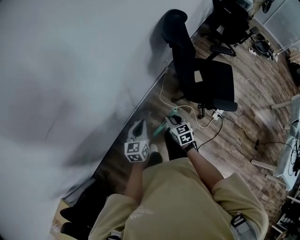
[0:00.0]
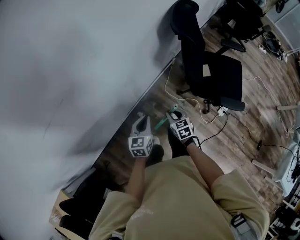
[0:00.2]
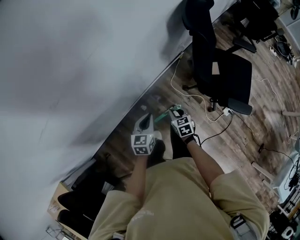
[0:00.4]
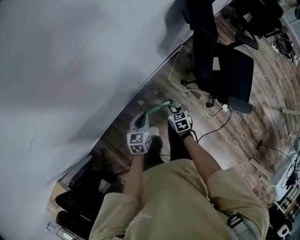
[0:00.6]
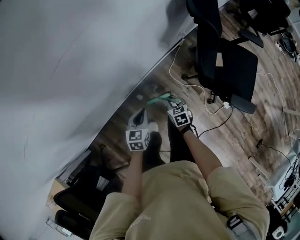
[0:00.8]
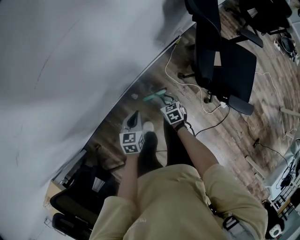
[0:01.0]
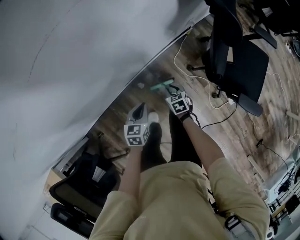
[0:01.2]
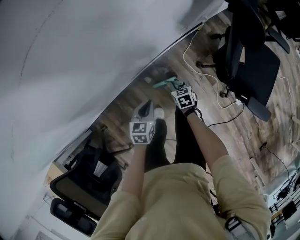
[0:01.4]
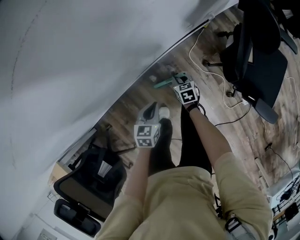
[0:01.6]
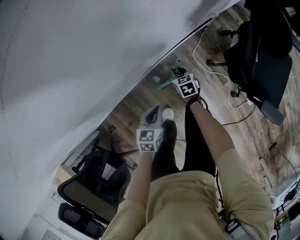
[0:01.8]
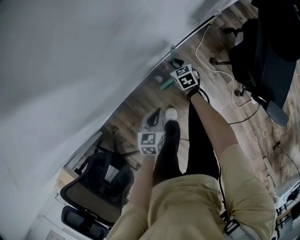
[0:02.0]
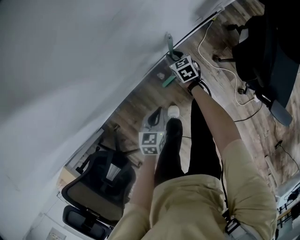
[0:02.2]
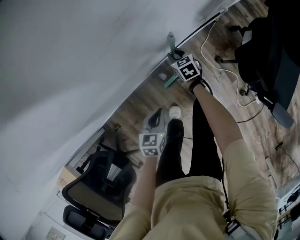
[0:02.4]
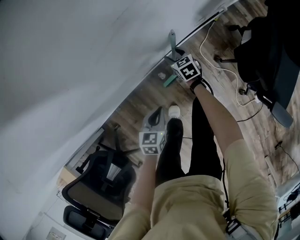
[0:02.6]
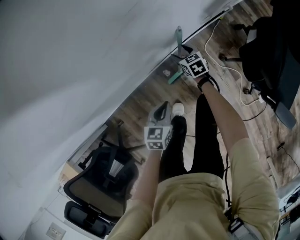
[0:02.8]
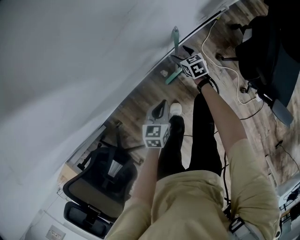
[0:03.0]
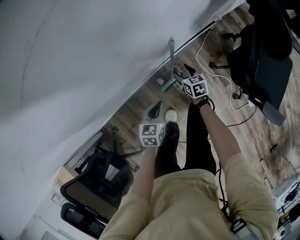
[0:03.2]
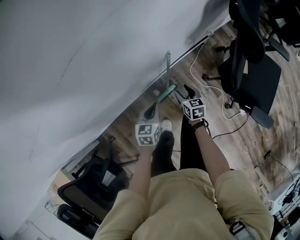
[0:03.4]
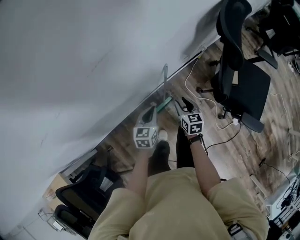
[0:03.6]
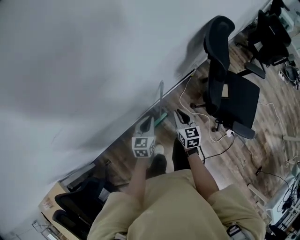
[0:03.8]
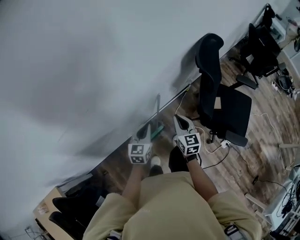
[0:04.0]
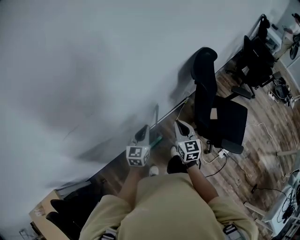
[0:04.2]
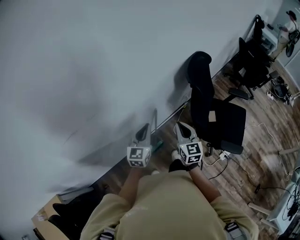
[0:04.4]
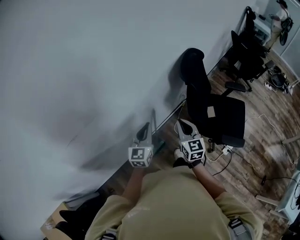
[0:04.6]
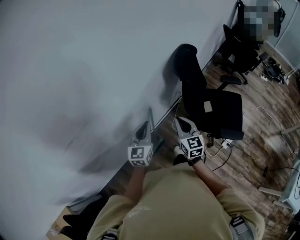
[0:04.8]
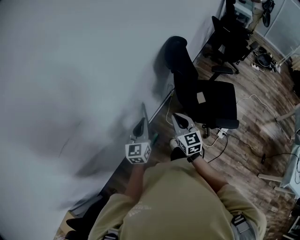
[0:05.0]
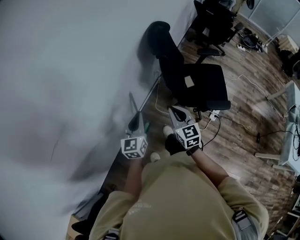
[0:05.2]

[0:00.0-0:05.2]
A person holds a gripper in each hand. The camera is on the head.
0:00.0 to 0:01.8: The right gripper goes about 40 cm downward and forward. The left gripper is displaced downward by roughly 25 cm, and changes its angle by roughly 30 degrees.
0:01.8 to 0:03.4: The left gripper is displaced forward and upward by about 10 cm, while the right gripper shifts roughly 10 cm upward, and opens.
0:03.4 to 0:05.2: Both grippers travel together upward, about 35 cm. The right gripper turns by roughly 40 degrees, and closes. The left gripper angles its fingers upward, by roughly 30 degrees.

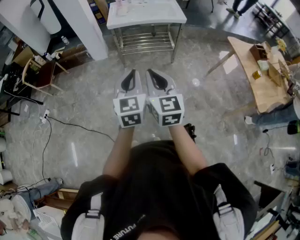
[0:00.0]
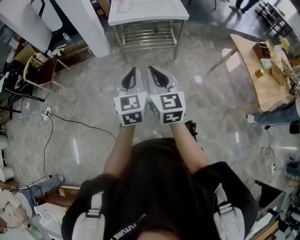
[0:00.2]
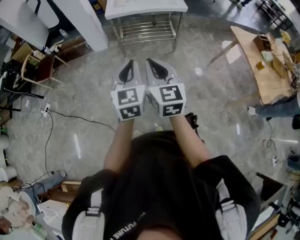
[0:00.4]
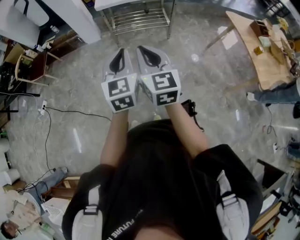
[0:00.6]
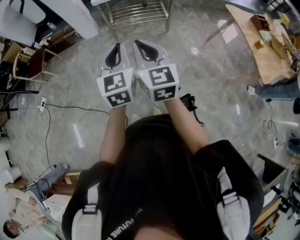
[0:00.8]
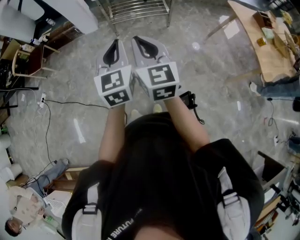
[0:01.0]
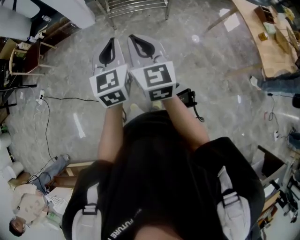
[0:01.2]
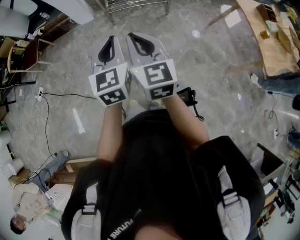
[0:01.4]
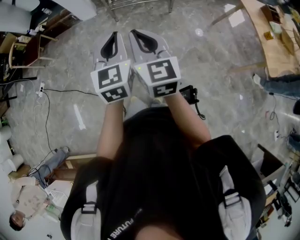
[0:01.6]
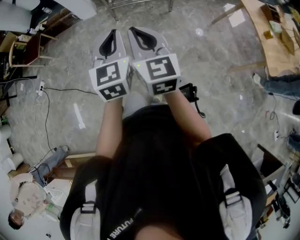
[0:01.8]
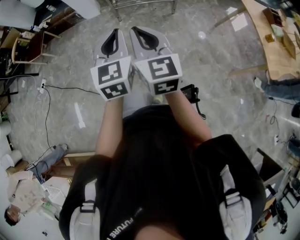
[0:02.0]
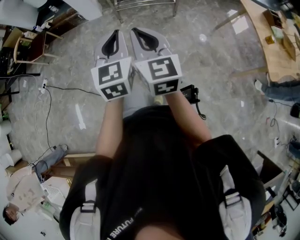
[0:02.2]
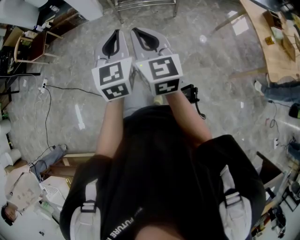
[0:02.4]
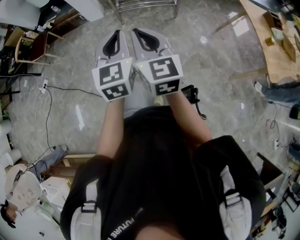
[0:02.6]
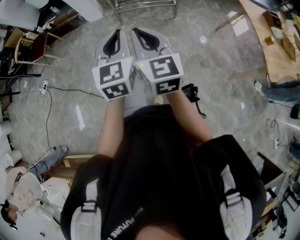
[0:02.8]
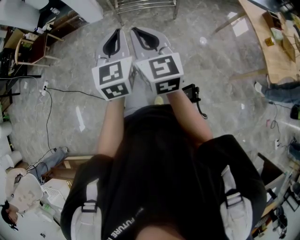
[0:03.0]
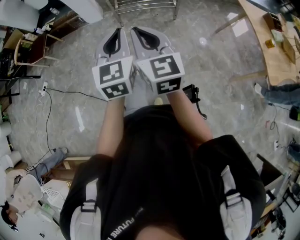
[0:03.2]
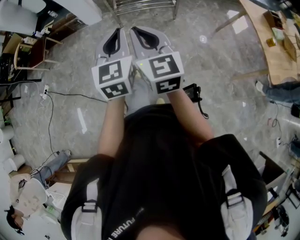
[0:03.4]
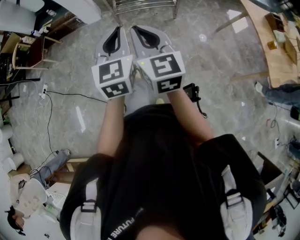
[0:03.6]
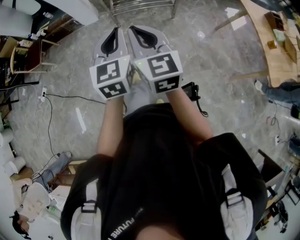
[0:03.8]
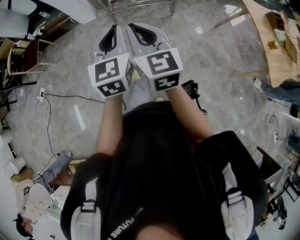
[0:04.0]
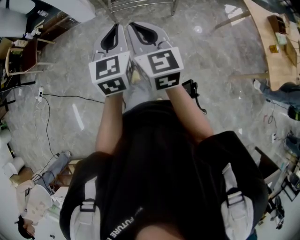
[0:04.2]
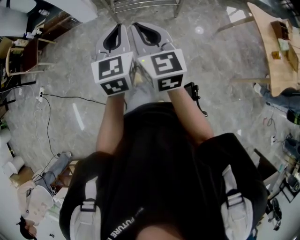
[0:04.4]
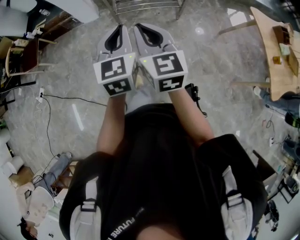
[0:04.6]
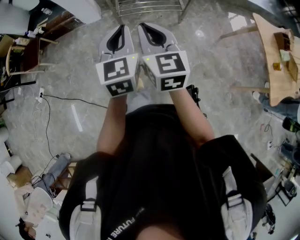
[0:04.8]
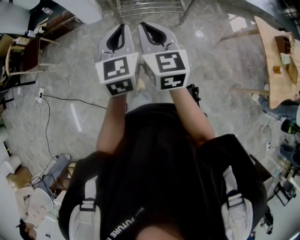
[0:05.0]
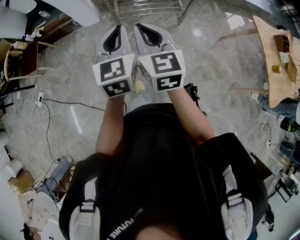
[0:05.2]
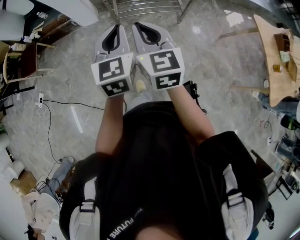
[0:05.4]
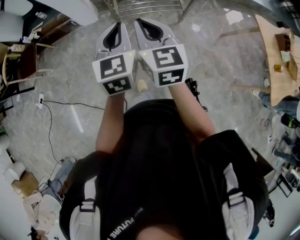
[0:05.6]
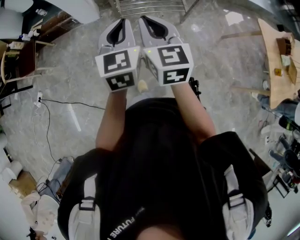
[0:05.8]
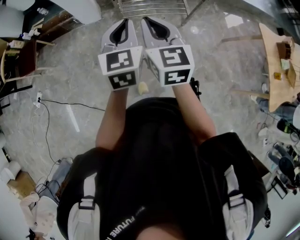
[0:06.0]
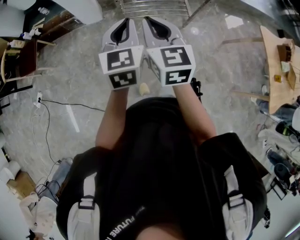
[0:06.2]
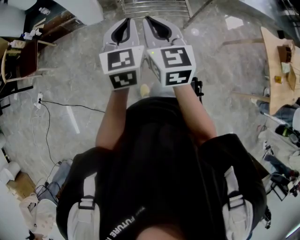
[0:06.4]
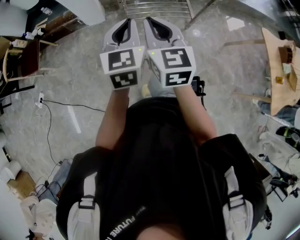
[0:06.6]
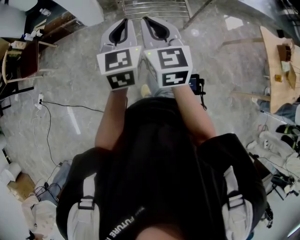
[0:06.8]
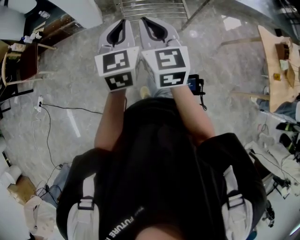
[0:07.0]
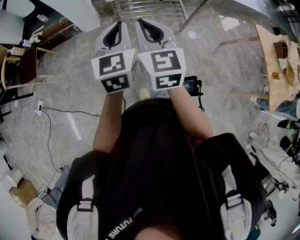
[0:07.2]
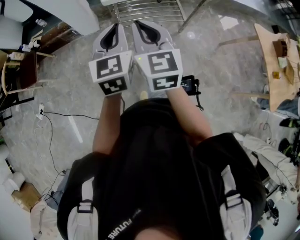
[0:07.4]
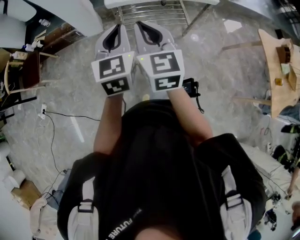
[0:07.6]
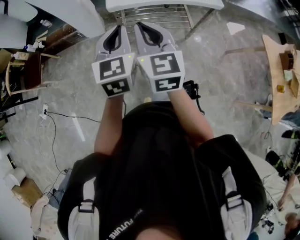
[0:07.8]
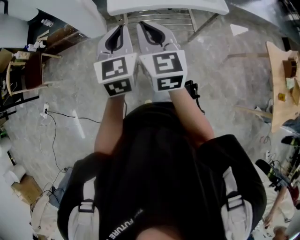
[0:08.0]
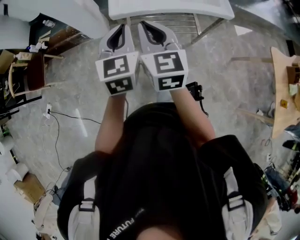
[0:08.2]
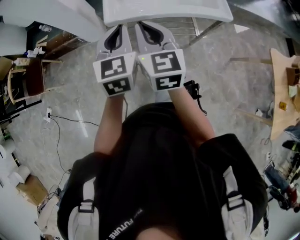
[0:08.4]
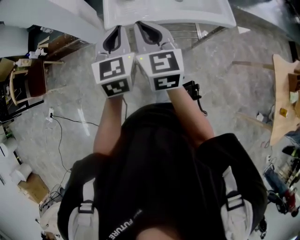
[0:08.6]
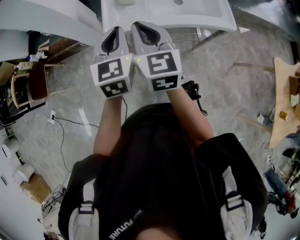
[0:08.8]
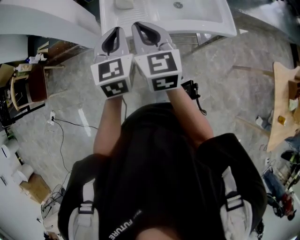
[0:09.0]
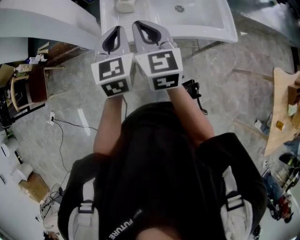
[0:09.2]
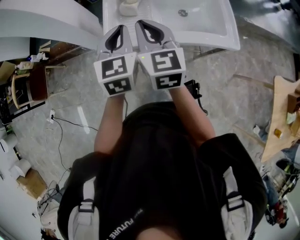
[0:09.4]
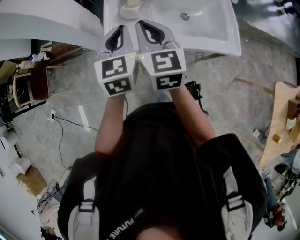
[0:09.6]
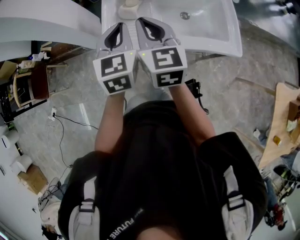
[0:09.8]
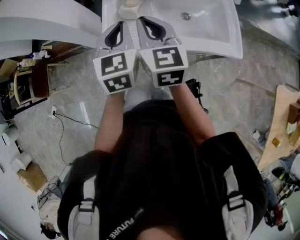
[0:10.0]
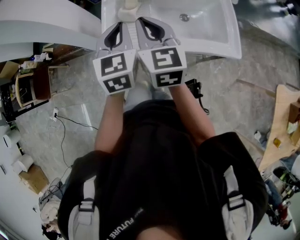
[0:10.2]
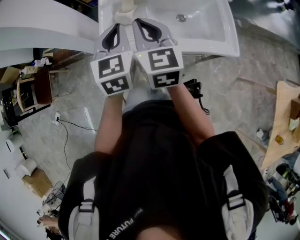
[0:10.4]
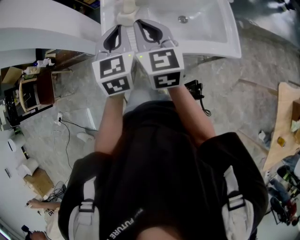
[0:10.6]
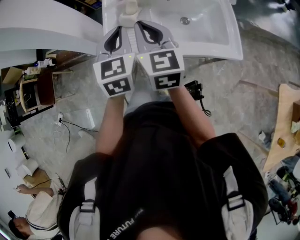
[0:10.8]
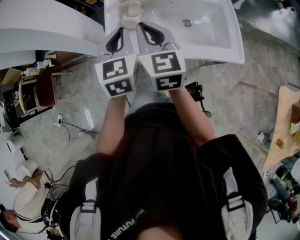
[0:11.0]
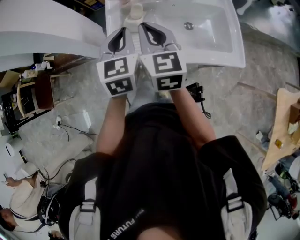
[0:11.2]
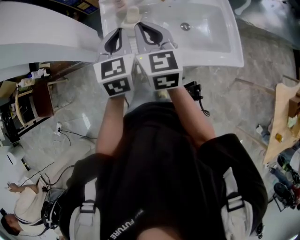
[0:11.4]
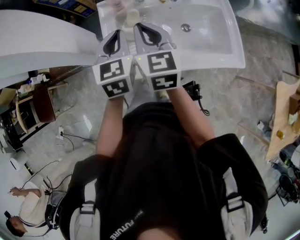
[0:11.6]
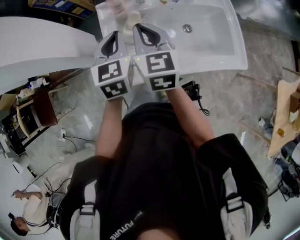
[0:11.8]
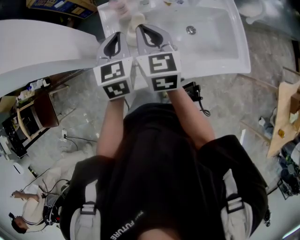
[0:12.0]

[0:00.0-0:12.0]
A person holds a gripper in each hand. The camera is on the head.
0:00.0 to 0:01.6: The left gripper ends up about 5 cm from where it was. The right gripper moves approximately 5 cm.
0:01.6 to 0:03.0: There are only small adjustments of the grippers.
0:03.0 to 0:04.4: The grippers both shift forward by about 20 cm.
0:04.4 to 0:06.0: Both grippers travel together forward and to the left, roughly 25 cm.
0:06.0 to 0:07.6: The two grippers go some 5 cm forward.
0:07.6 to 0:09.0: The grippers both shift forward by roughly 35 cm.
0:09.0 to 0:10.4: The two grippers go about 15 cm forward and to the right.
0:10.4 to 0:12.0: The two grippers go some 20 cm forward.

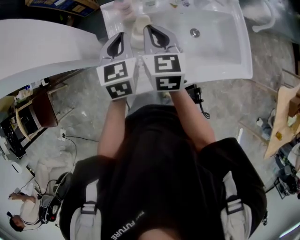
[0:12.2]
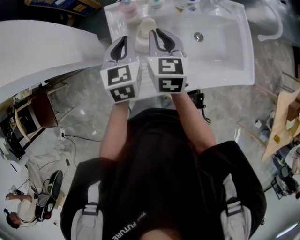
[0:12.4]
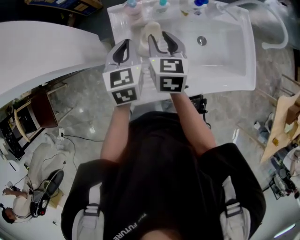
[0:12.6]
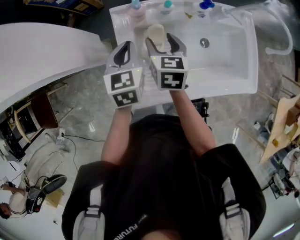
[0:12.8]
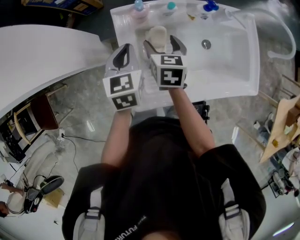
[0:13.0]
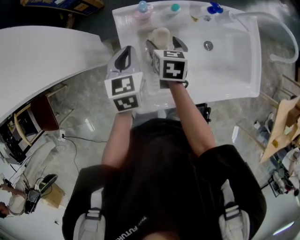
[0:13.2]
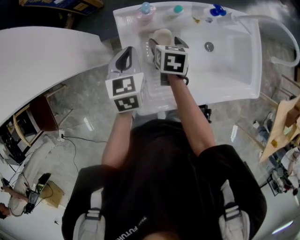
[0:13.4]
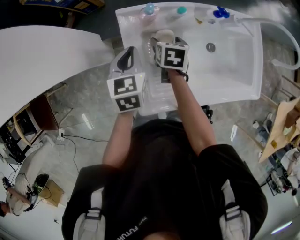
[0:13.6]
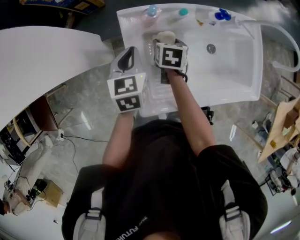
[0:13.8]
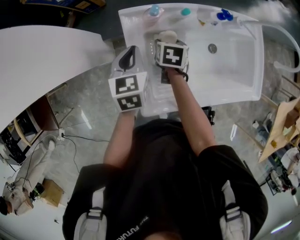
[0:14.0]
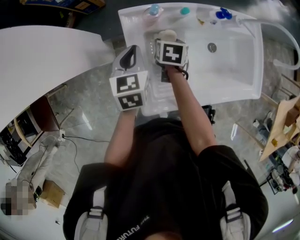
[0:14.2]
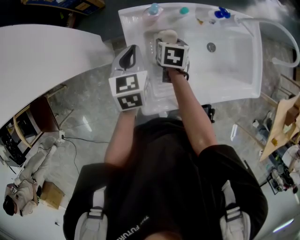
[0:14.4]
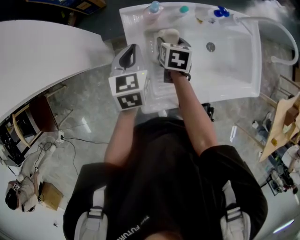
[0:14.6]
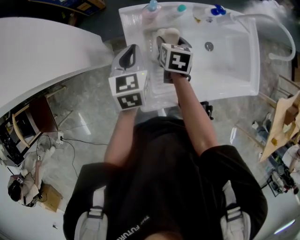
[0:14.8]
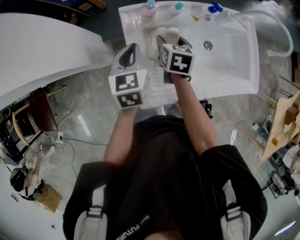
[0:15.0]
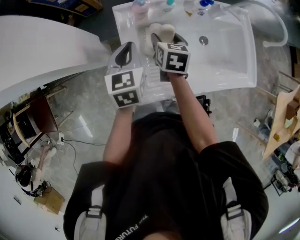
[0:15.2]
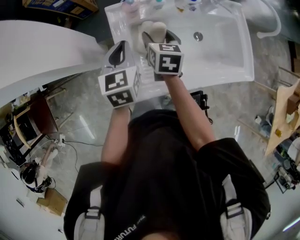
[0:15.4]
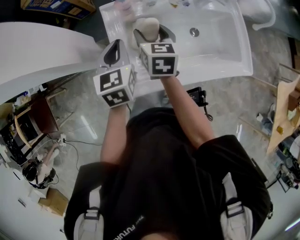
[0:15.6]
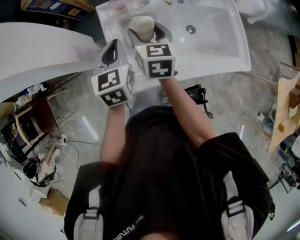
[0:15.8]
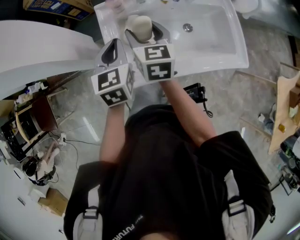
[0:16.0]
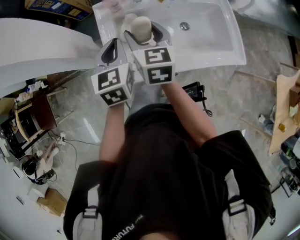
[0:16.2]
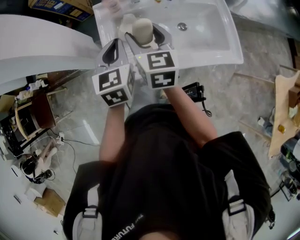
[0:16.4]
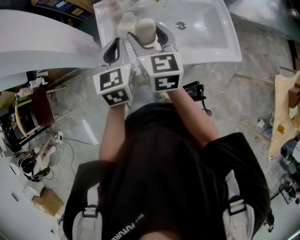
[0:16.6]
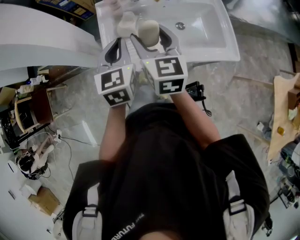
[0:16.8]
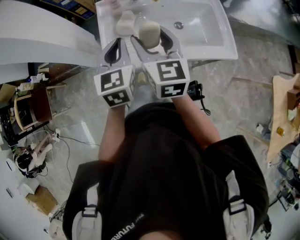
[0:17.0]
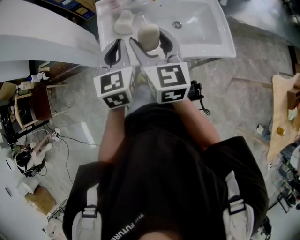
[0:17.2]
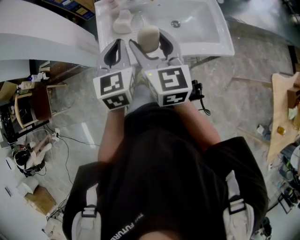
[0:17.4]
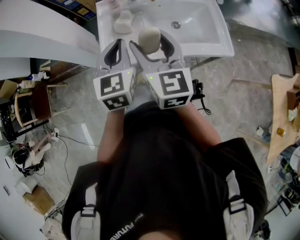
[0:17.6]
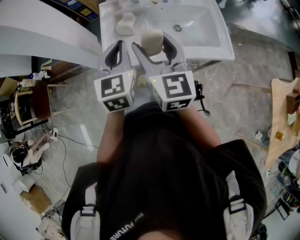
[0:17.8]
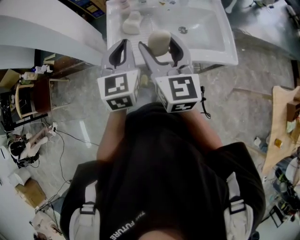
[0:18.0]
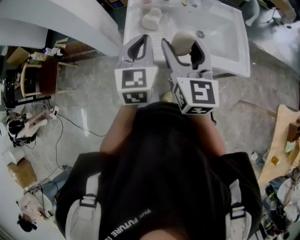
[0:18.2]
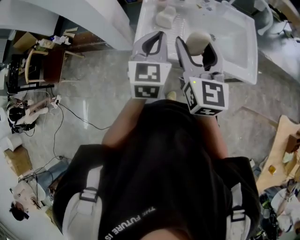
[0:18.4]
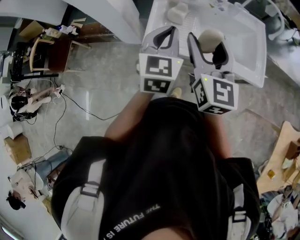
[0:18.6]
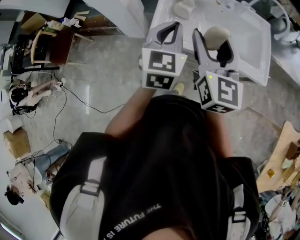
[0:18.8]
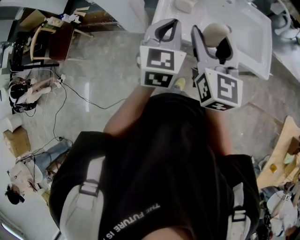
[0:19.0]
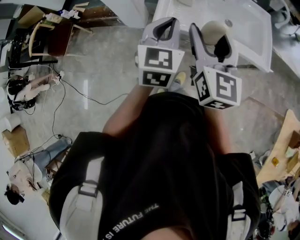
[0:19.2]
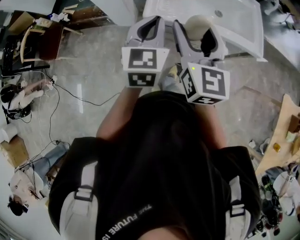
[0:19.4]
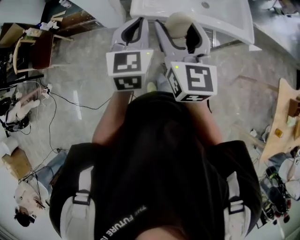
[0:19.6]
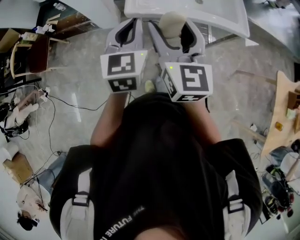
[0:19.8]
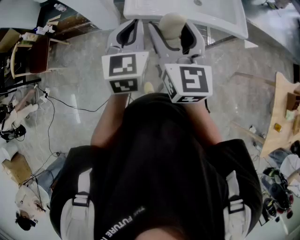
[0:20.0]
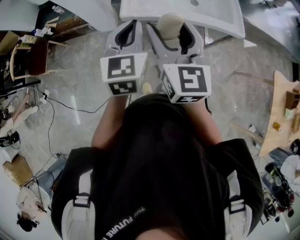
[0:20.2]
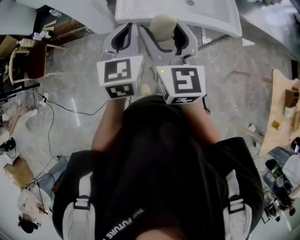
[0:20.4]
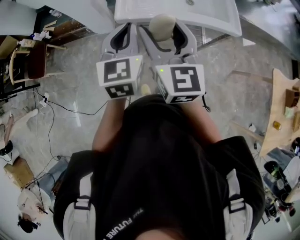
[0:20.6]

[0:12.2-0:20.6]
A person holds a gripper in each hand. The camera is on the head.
0:12.2 to 0:13.6: The left gripper heads downward, forward and to the left, covering approximately 15 cm. The right gripper heads downward and forward, covering roughly 25 cm, angles its fingers downward, by about 30 degrees, and opens up.
0:13.6 to 0:15.0: The right gripper travels upward by about 5 cm. Meanwhile the left gripper changes place by approximately 5 cm.
0:15.0 to 0:16.4: The left gripper travels backward, to the right and upward by roughly 20 cm. The right gripper travels upward and backward by some 25 cm, and changes its angle by approximately 30 degrees.
0:16.4 to 0:17.8: The left gripper shifts some 15 cm backward. Meanwhile the right gripper travels backward and upward by some 20 cm.
0:17.8 to 0:19.2: Both grippers move backward and to the left, some 15 cm.
0:19.2 to 0:20.6: The two grippers go about 10 cm backward.
